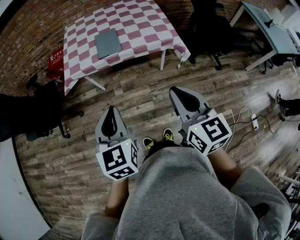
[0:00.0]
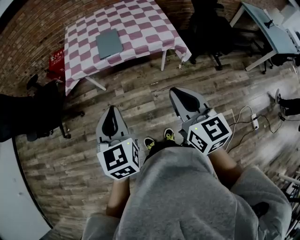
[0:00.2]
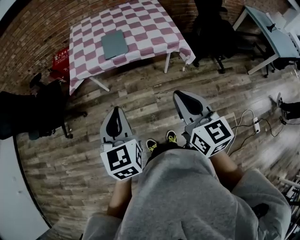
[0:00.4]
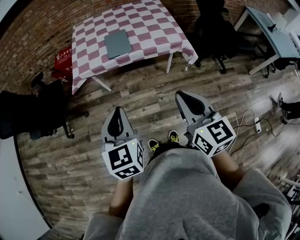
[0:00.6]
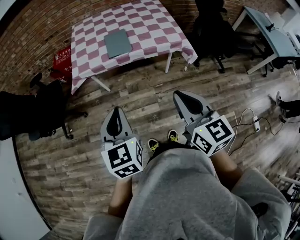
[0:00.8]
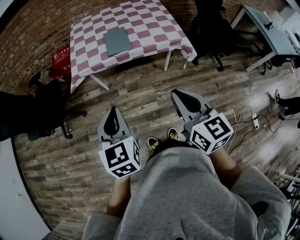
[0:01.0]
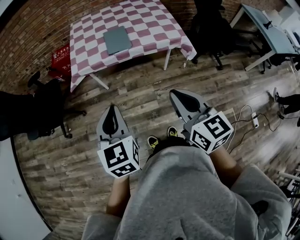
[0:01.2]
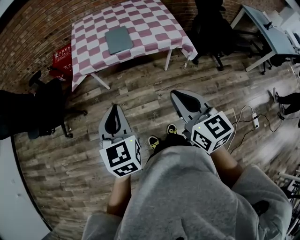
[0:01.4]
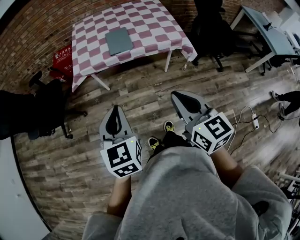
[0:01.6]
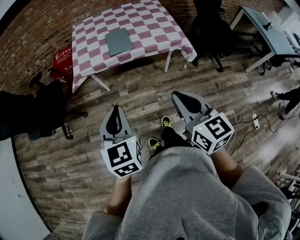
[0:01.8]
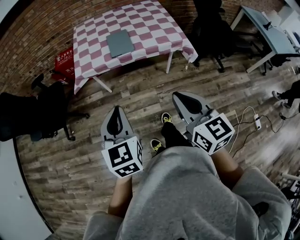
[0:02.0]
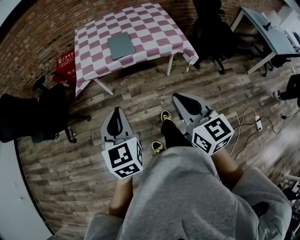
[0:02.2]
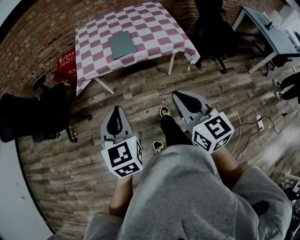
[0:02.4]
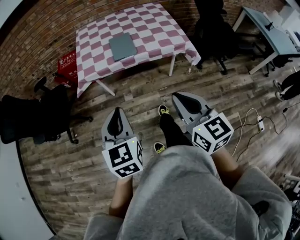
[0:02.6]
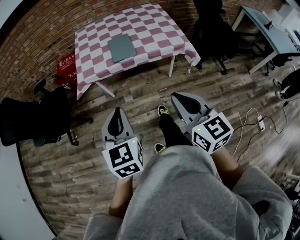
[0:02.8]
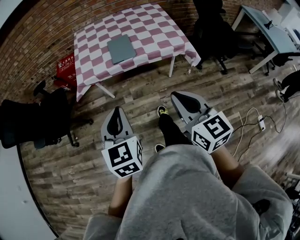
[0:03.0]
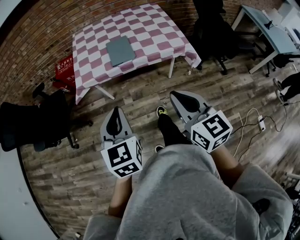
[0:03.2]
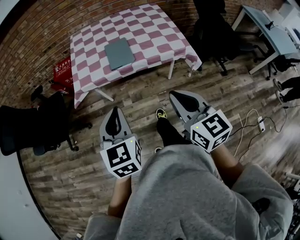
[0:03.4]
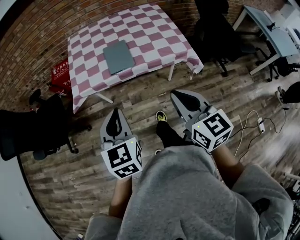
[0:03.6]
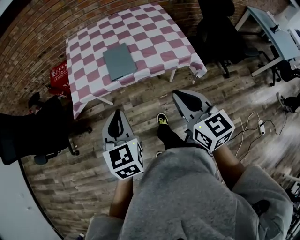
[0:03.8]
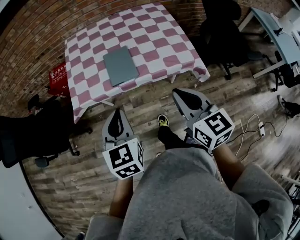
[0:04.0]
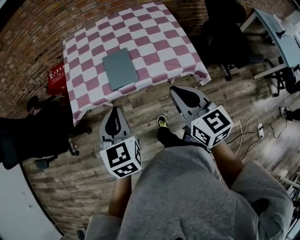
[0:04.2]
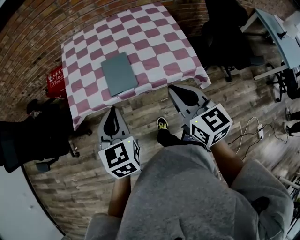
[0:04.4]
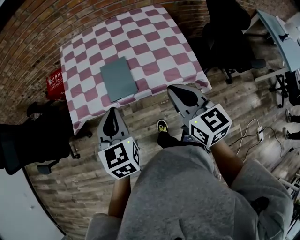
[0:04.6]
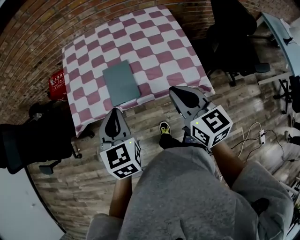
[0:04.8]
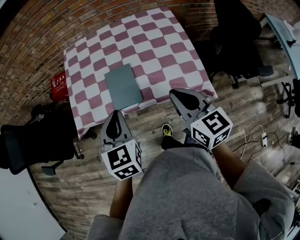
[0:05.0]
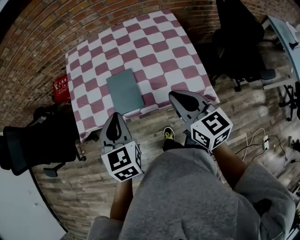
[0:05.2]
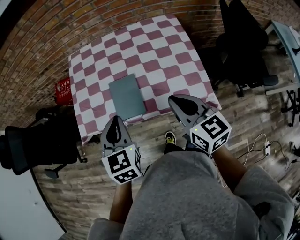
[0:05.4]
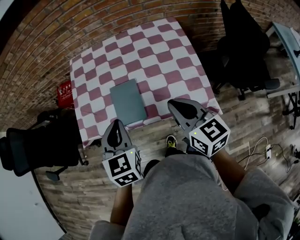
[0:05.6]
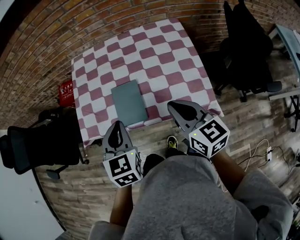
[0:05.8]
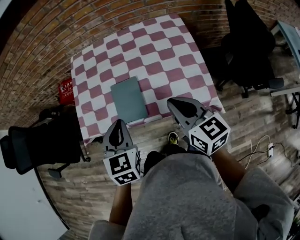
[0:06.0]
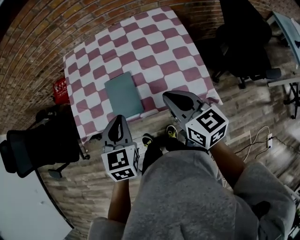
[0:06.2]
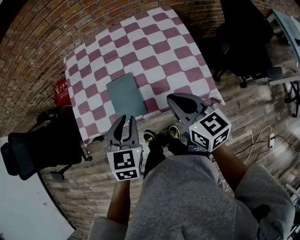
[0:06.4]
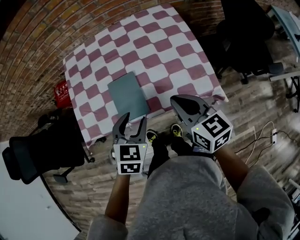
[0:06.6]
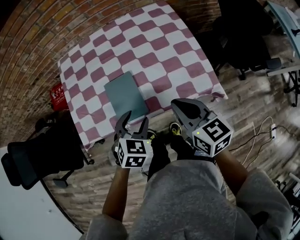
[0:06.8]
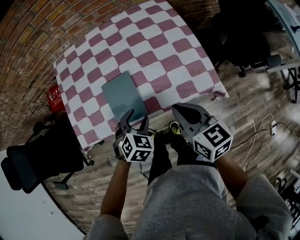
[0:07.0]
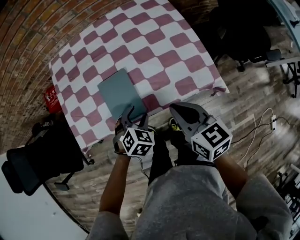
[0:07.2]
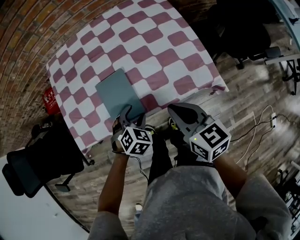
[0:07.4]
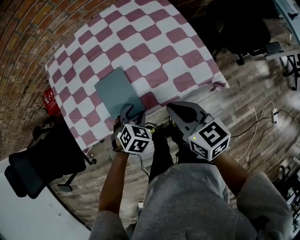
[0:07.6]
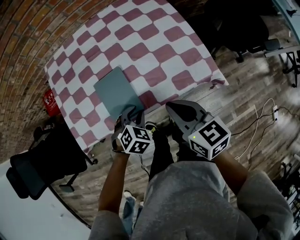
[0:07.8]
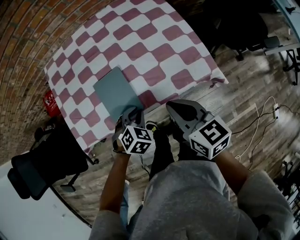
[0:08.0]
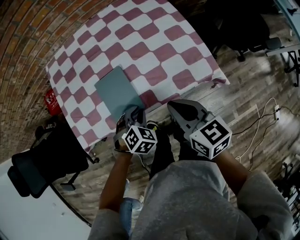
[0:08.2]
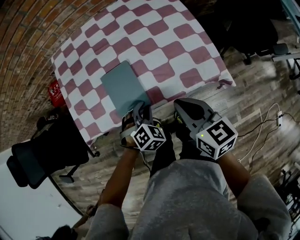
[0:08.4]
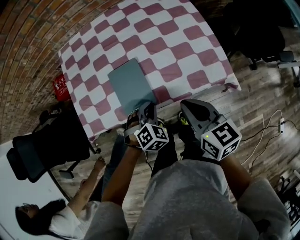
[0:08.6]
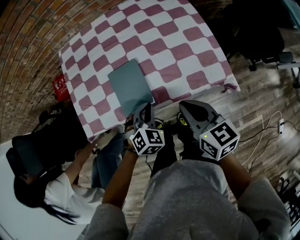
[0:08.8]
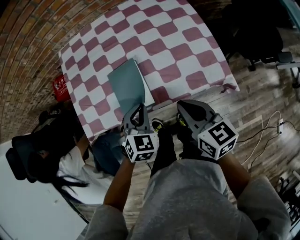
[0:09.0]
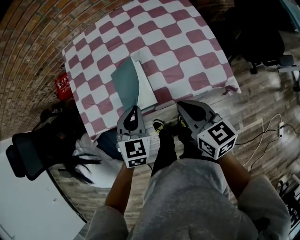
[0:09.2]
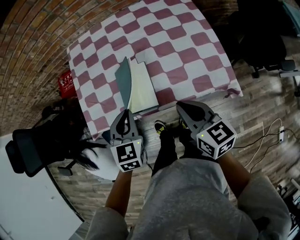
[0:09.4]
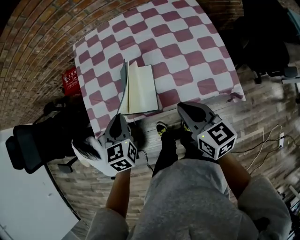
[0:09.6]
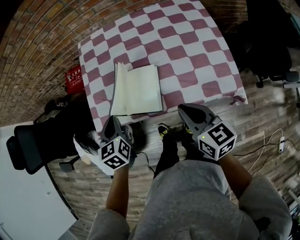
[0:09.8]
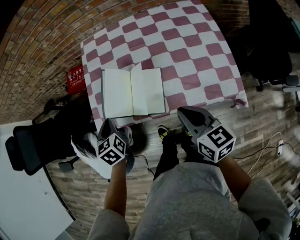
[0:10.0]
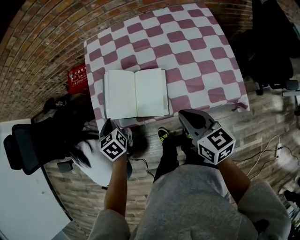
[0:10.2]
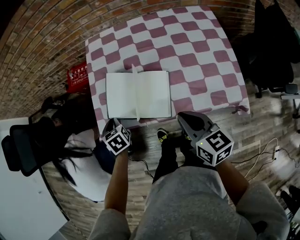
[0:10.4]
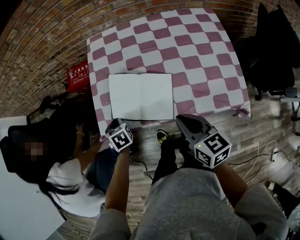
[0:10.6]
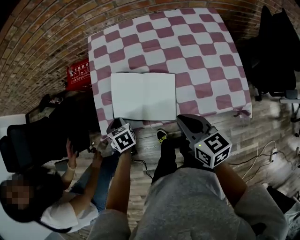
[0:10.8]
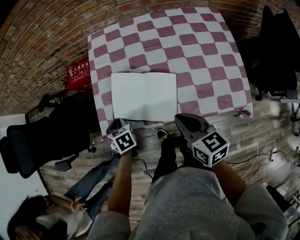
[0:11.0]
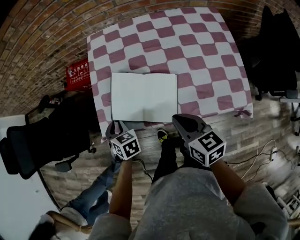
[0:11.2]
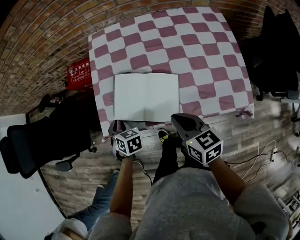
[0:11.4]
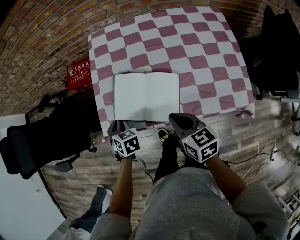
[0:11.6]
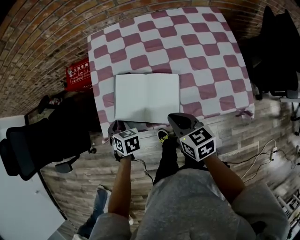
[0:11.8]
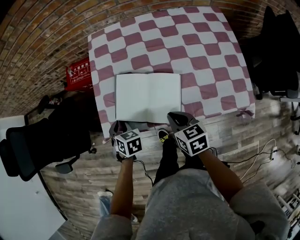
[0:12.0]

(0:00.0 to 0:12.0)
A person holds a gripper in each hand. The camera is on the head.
0:00.0 - 0:01.6: Both grippers travel together to the left, about 10 cm.
0:01.6 - 0:03.0: The grippers move only a little.
0:03.0 - 0:04.4: The two grippers go some 25 cm forward.
0:04.4 - 0:06.0: Both grippers move forward, about 10 cm.
0:06.0 - 0:07.6: The right gripper is displaced downward by roughly 10 cm. Meanwhile the left gripper shifts about 20 cm downward, changes its angle by roughly 50 degrees, and opens up.
0:07.6 - 0:09.0: The left gripper moves upward, approximately 10 cm, turns by about 20 degrees, and closes.
0:09.0 - 0:10.4: The left gripper changes place by some 30 cm, and rolls counterclockwise, seen from behind, by about 50 degrees, while the right gripper changes place by roughly 10 cm.
0:10.4 - 0:12.0: The left gripper changes its angle by about 20 degrees, while the right gripper travels downward and forward by about 15 cm.

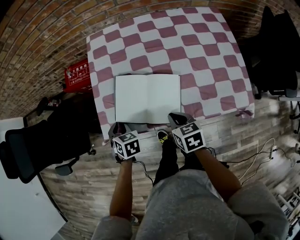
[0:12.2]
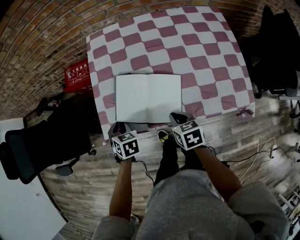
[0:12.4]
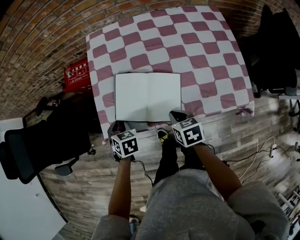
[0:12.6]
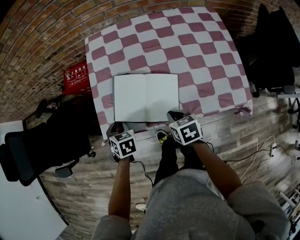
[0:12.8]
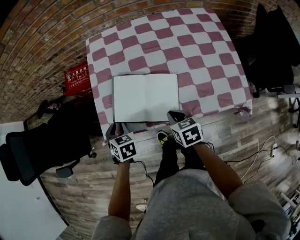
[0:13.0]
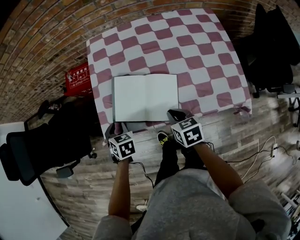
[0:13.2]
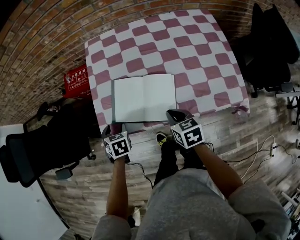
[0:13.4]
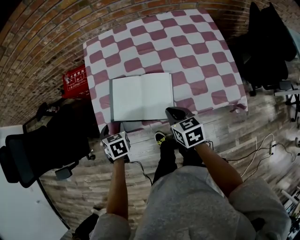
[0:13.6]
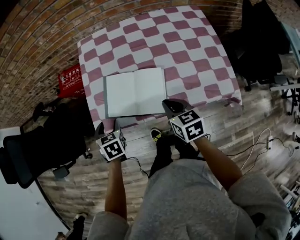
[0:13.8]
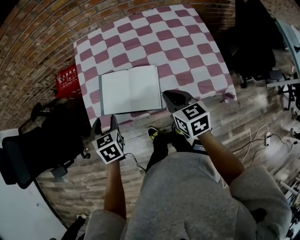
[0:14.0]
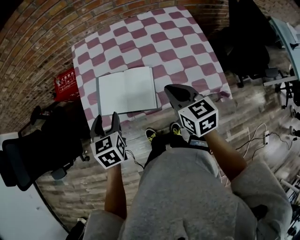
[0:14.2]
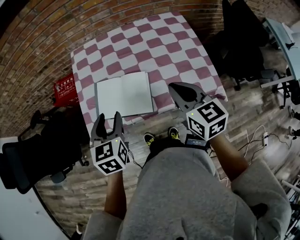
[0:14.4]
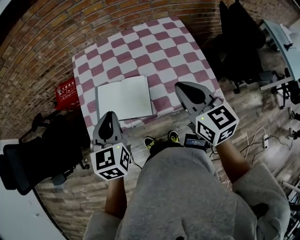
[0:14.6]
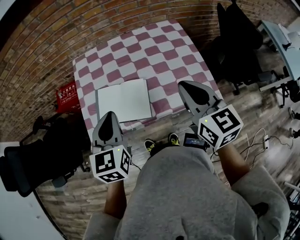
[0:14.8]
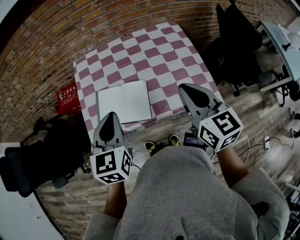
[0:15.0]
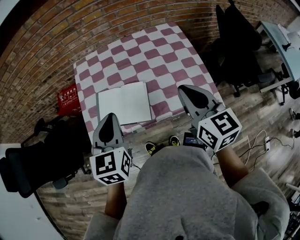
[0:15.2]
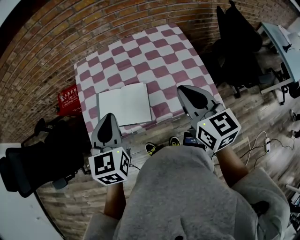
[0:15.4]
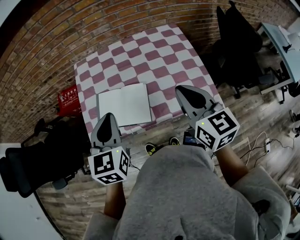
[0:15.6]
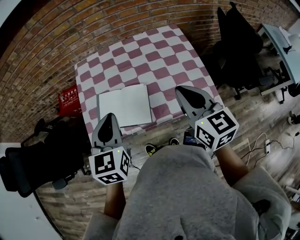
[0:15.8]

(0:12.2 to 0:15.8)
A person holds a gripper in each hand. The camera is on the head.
0:12.2 - 0:14.0: The left gripper heads upward, covering approximately 10 cm, and opens. The right gripper is displaced upward and to the right by roughly 15 cm.
0:14.0 - 0:15.8: The two grippers go about 20 cm upward and to the right. The left gripper changes its angle by roughly 30 degrees, and closes its fingers, while the right gripper swivels approximately 20 degrees.

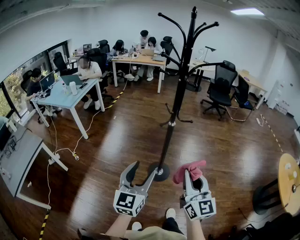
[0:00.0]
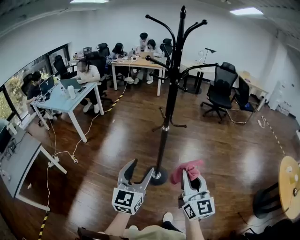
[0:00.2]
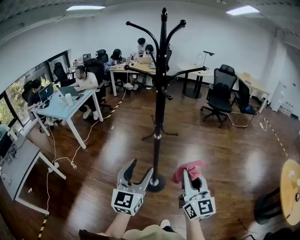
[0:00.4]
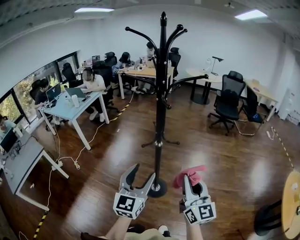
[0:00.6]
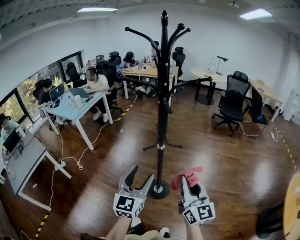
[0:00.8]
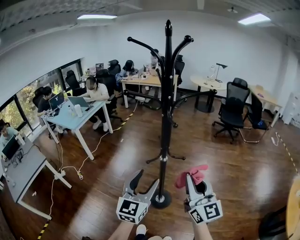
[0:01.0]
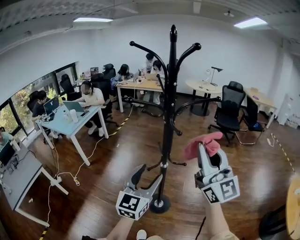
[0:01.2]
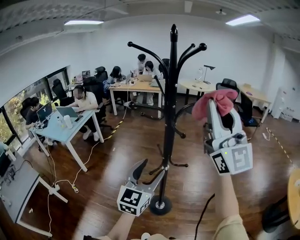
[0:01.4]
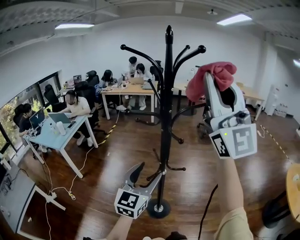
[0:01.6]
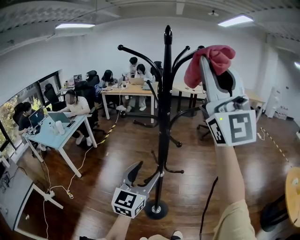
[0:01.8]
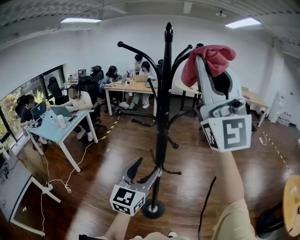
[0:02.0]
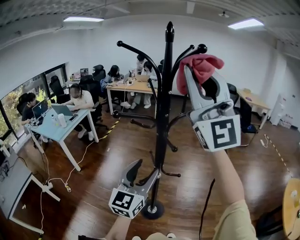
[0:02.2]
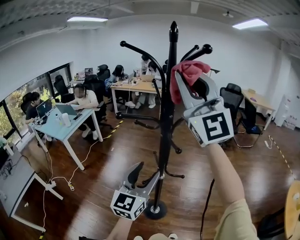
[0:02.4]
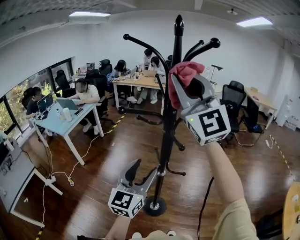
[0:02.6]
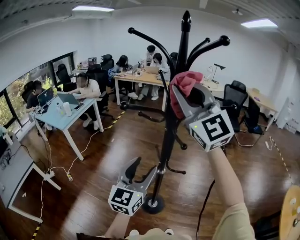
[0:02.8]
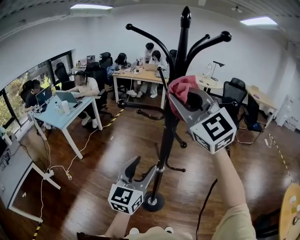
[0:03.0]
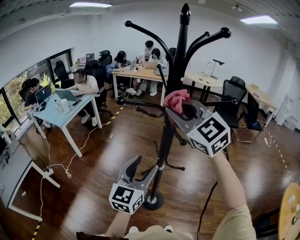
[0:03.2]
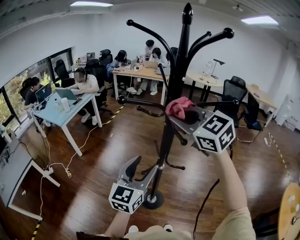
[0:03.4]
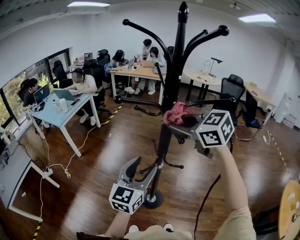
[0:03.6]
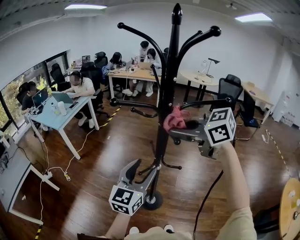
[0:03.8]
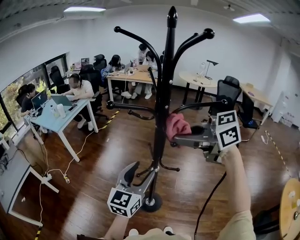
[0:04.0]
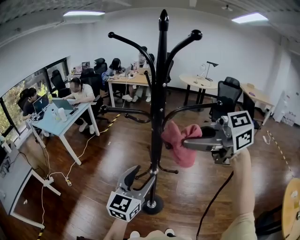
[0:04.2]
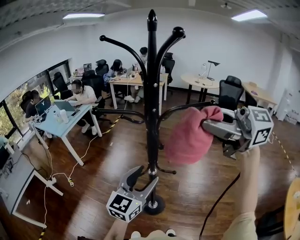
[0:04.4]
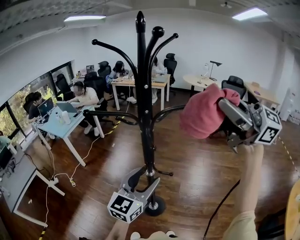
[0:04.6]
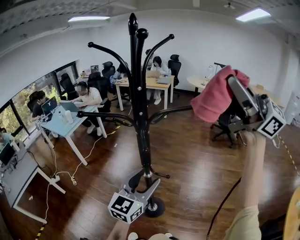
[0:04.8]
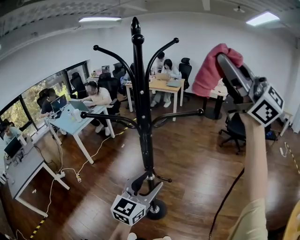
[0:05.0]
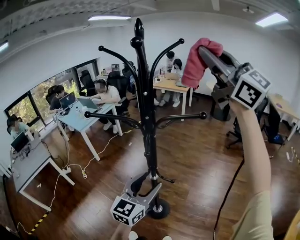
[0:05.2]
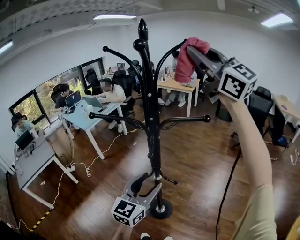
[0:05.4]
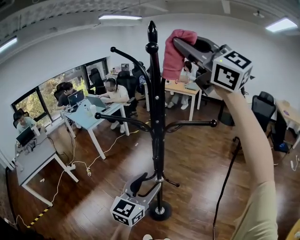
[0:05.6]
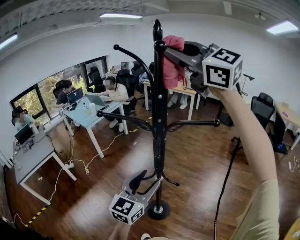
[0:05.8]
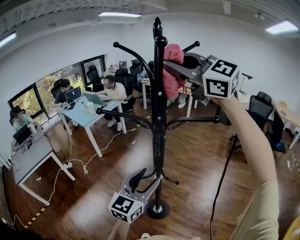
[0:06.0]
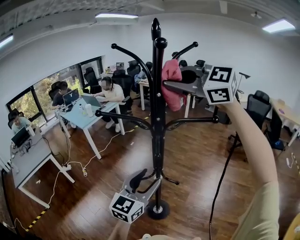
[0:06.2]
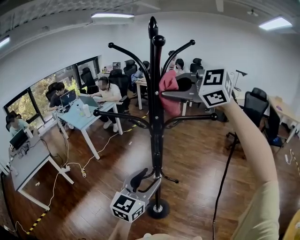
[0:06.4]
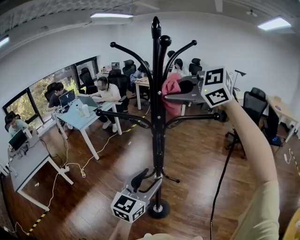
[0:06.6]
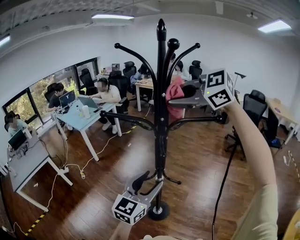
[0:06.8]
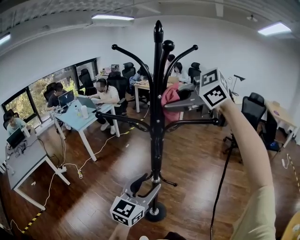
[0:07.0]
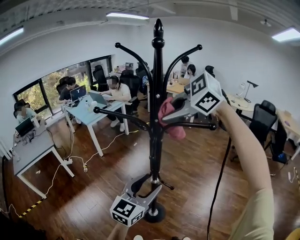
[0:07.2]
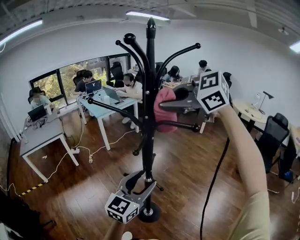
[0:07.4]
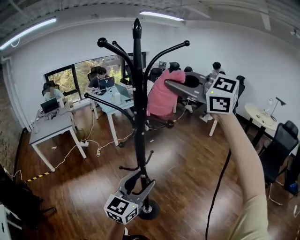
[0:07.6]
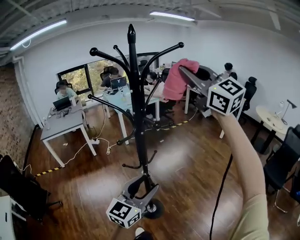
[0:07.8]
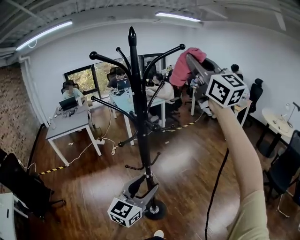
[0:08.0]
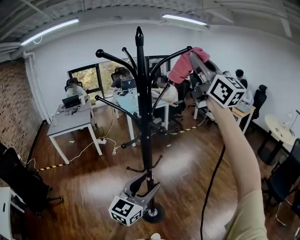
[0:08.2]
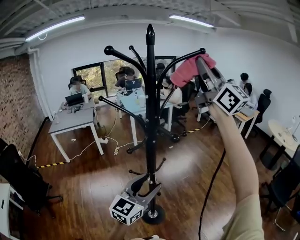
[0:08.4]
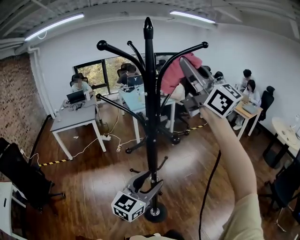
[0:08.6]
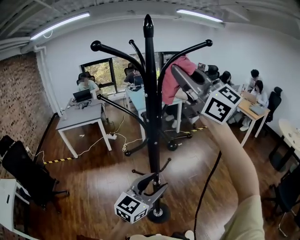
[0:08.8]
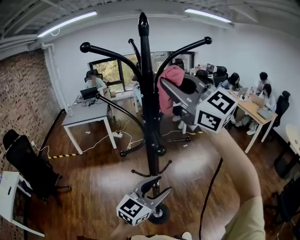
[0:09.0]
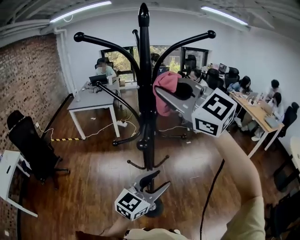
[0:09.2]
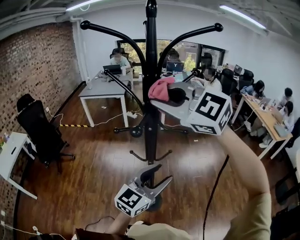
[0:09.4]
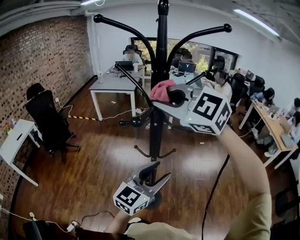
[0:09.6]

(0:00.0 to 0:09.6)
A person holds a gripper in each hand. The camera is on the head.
0:00.0 - 0:01.6: The left gripper is displaced forward and to the right by some 25 cm. Meanwhile the right gripper goes some 50 cm upward and forward, and tips its fingers upward by about 40 degrees.
0:01.6 - 0:03.2: The right gripper is displaced downward and forward by approximately 25 cm, and tips its fingers downward by some 50 degrees.
0:03.2 - 0:04.8: The left gripper is displaced to the right and backward by roughly 10 cm; the right gripper is displaced to the right, upward and backward by approximately 30 cm, and tilts its fingers approximately 30 degrees upward.
0:04.8 - 0:06.4: The right gripper shifts approximately 25 cm forward, to the left and downward, and points its fingers roughly 50 degrees further downward.
0:06.4 - 0:08.0: The right gripper travels to the right and upward by some 20 cm, and tilts its fingers some 50 degrees upward; the left gripper is displaced to the right and backward by approximately 15 cm, and changes its angle by some 30 degrees.
0:08.0 - 0:09.6: The right gripper heads downward, covering about 20 cm, and tilts its fingers roughly 50 degrees downward. Meanwhile the left gripper ends up roughly 10 cm from where it was, and rotates roughly 20 degrees.
